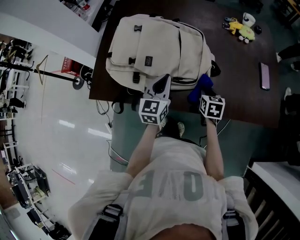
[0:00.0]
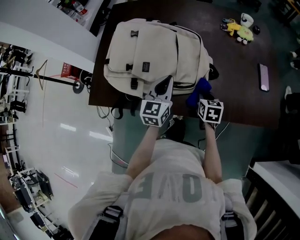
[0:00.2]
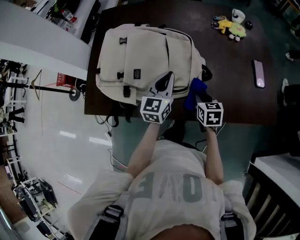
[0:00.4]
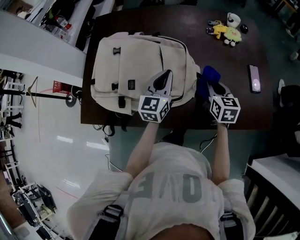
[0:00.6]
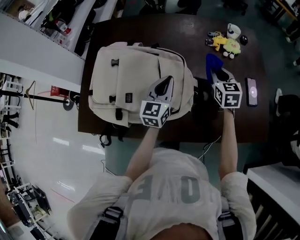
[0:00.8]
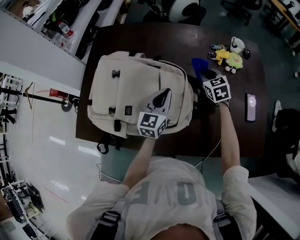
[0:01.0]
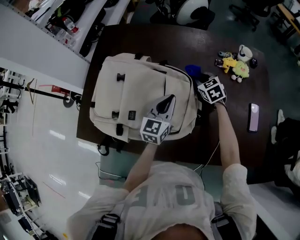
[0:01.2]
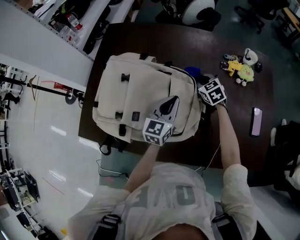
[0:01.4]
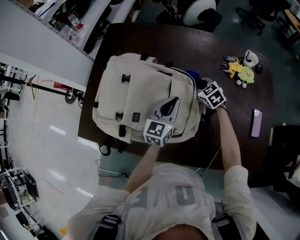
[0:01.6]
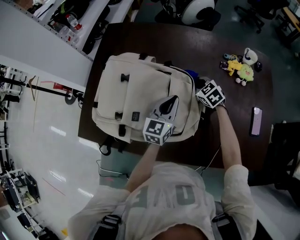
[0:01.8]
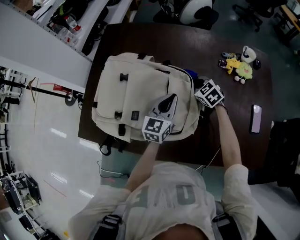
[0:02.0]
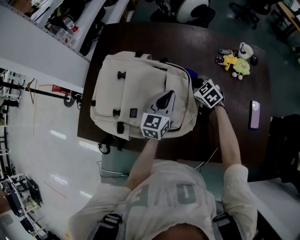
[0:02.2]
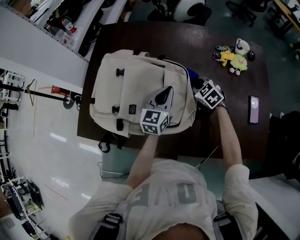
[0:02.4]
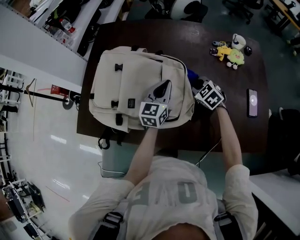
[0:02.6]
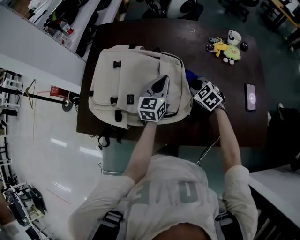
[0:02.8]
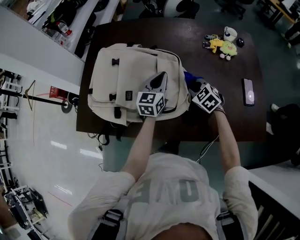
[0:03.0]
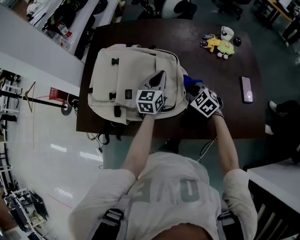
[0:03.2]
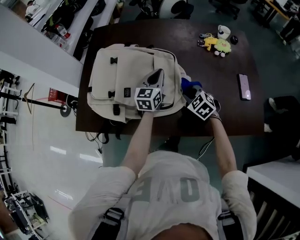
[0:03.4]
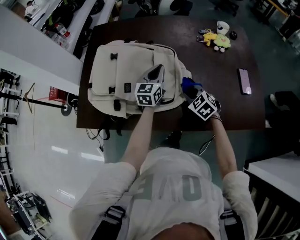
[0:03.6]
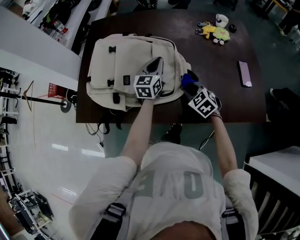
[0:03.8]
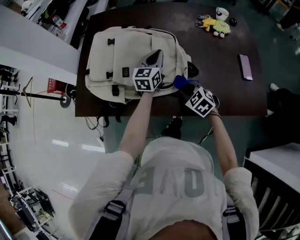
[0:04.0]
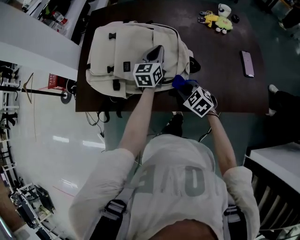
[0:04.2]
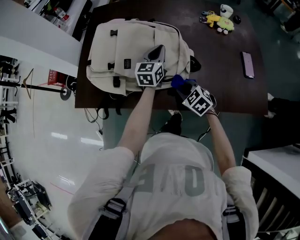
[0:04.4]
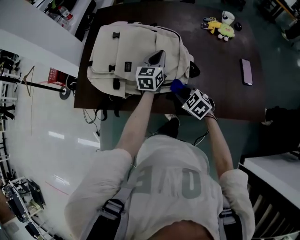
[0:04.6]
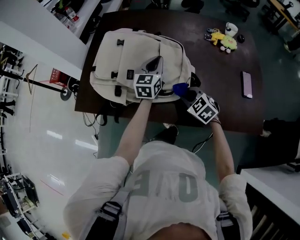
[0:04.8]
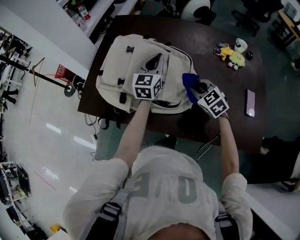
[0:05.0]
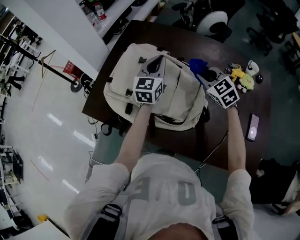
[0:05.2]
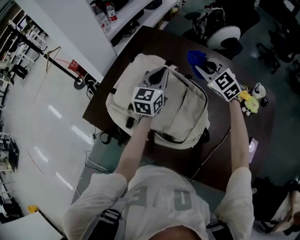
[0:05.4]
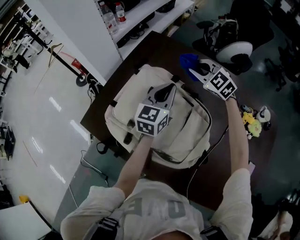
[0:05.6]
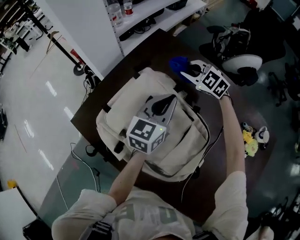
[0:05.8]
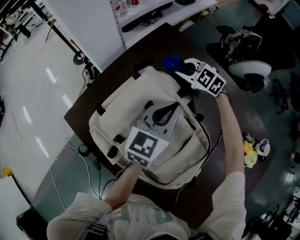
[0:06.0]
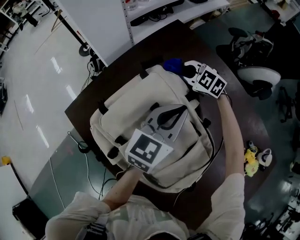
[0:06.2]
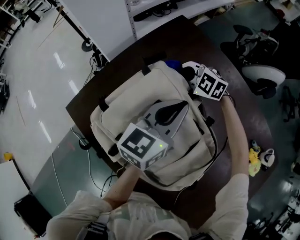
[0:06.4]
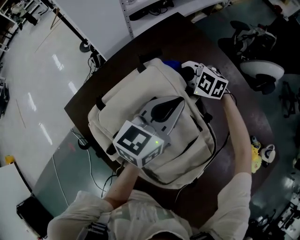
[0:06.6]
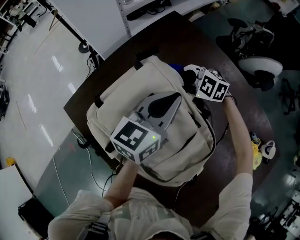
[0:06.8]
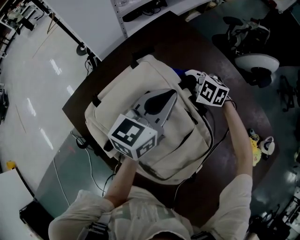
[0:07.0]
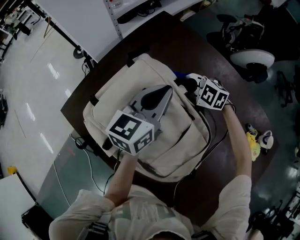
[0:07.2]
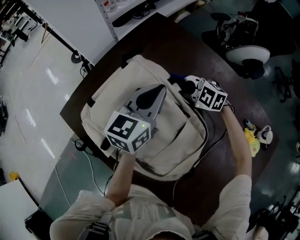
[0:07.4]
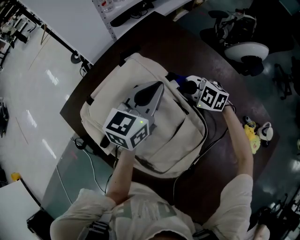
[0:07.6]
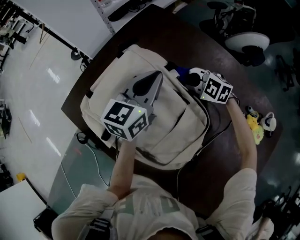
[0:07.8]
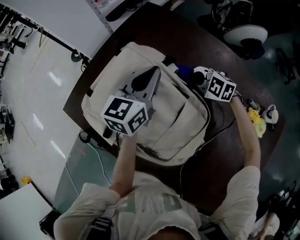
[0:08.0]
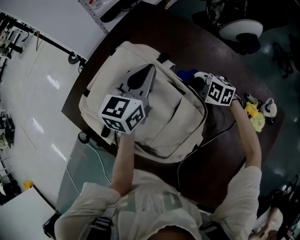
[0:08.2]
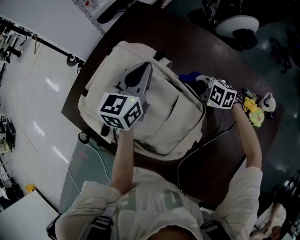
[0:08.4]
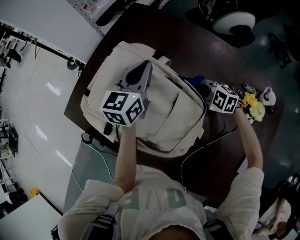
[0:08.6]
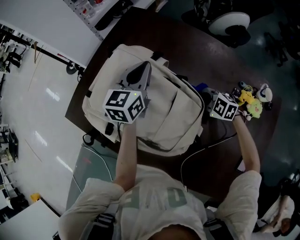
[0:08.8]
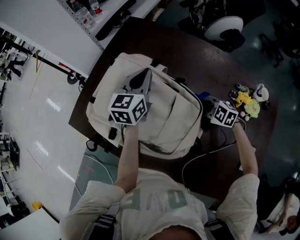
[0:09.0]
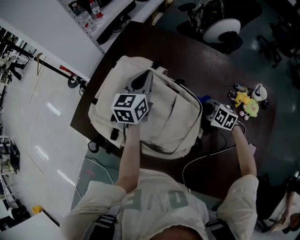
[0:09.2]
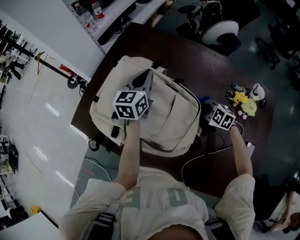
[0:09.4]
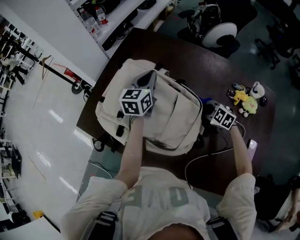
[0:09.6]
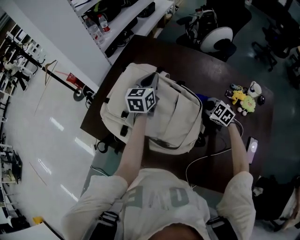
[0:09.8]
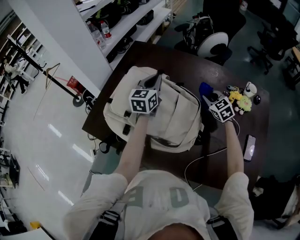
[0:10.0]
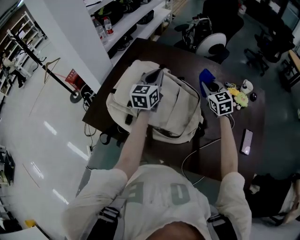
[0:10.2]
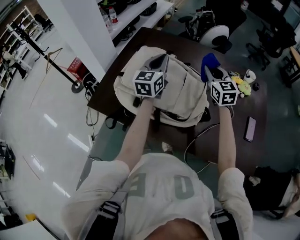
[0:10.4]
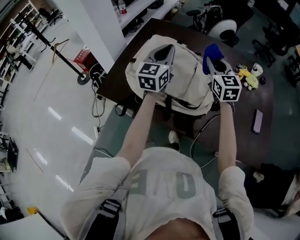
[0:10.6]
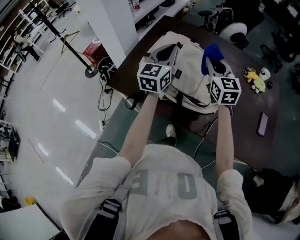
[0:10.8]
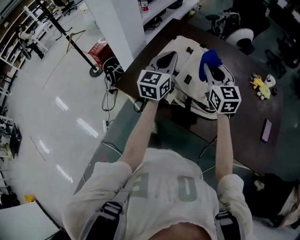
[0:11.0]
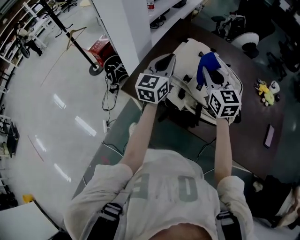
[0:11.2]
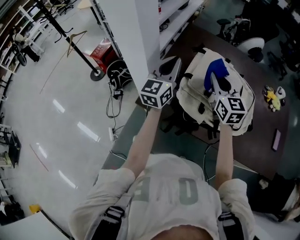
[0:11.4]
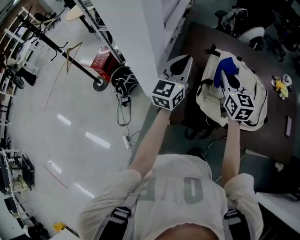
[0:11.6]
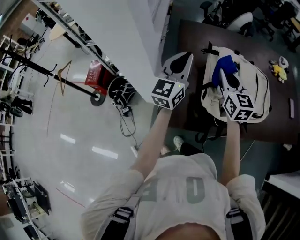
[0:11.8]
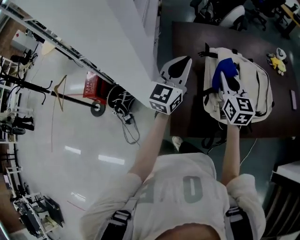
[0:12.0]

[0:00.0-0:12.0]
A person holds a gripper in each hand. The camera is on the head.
0:00.0 to 0:01.6: The left gripper shifts some 15 cm forward and to the right, while the right gripper moves forward, roughly 30 cm, and rotates around the line of its fingers by roughly 40 degrees, counterclockwise from behind.
0:01.6 to 0:03.0: The right gripper travels backward by about 15 cm.
0:03.0 to 0:04.4: The right gripper heads backward and to the left, covering roughly 15 cm.
0:04.4 to 0:06.0: The right gripper ends up about 50 cm from where it was, and swivels some 60 degrees. Meanwhile the left gripper moves approximately 20 cm, and swivels some 20 degrees.
0:06.0 to 0:07.6: The right gripper is displaced backward by some 15 cm.
0:07.6 to 0:09.0: The right gripper is displaced backward by some 20 cm, and swivels about 20 degrees.
0:09.0 to 0:10.4: The left gripper shifts by about 15 cm. The right gripper is displaced upward by approximately 25 cm, and tilts its fingers approximately 40 degrees upward.
0:10.4 to 0:12.0: The right gripper ends up some 35 cm from where it was, and swivels about 30 degrees. Meanwhile the left gripper ends up approximately 35 cm from where it was, and changes its angle by about 30 degrees.

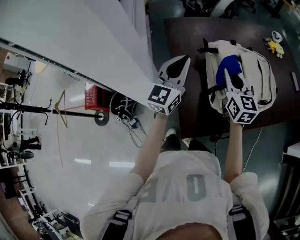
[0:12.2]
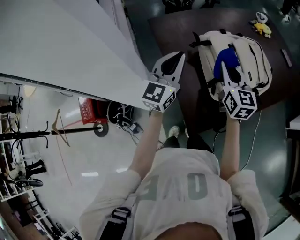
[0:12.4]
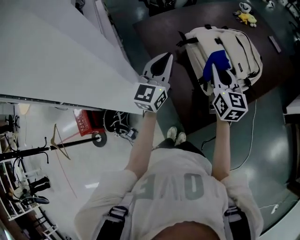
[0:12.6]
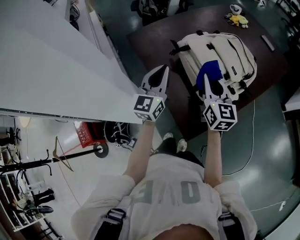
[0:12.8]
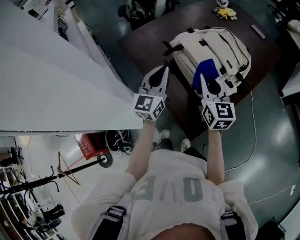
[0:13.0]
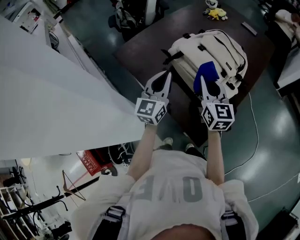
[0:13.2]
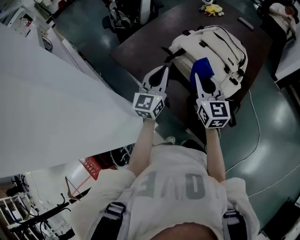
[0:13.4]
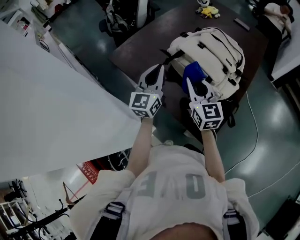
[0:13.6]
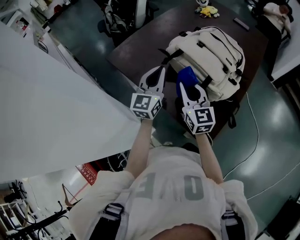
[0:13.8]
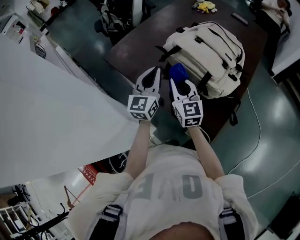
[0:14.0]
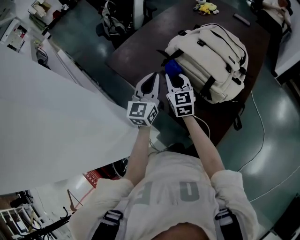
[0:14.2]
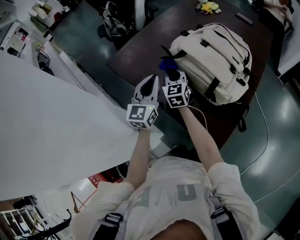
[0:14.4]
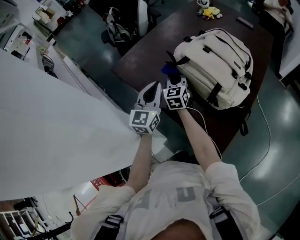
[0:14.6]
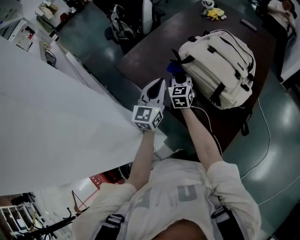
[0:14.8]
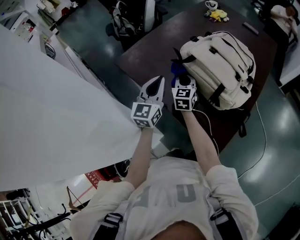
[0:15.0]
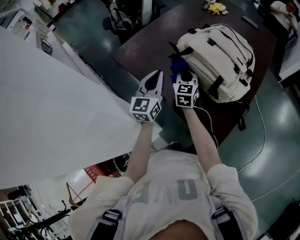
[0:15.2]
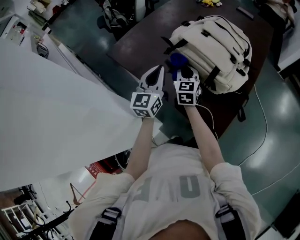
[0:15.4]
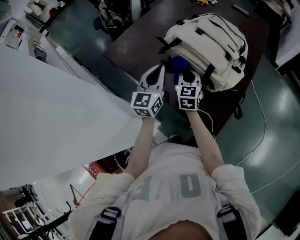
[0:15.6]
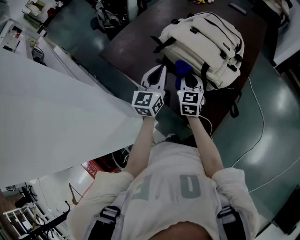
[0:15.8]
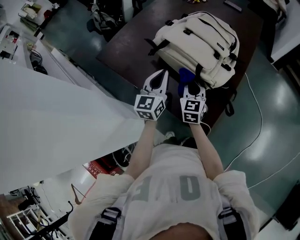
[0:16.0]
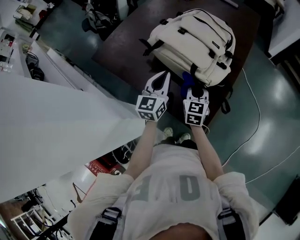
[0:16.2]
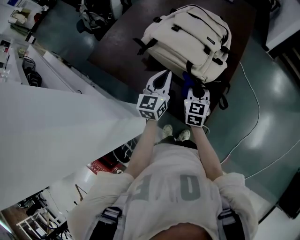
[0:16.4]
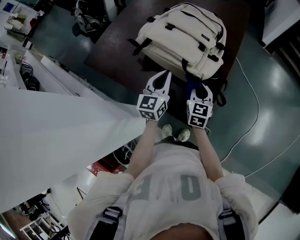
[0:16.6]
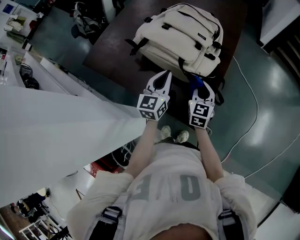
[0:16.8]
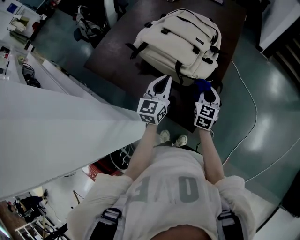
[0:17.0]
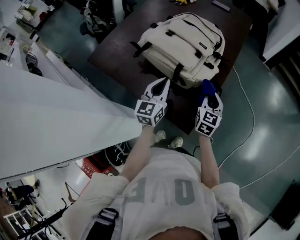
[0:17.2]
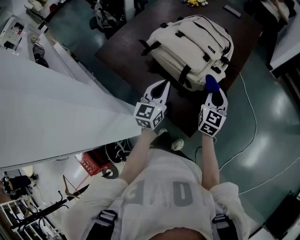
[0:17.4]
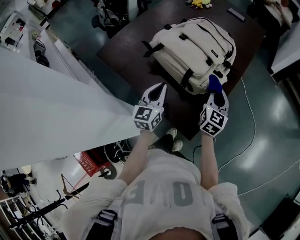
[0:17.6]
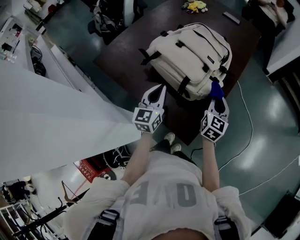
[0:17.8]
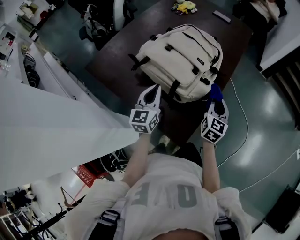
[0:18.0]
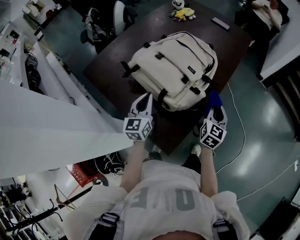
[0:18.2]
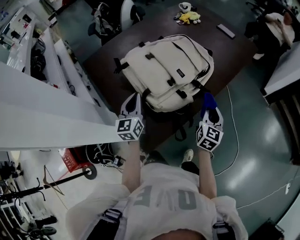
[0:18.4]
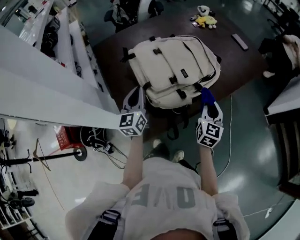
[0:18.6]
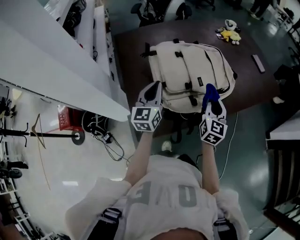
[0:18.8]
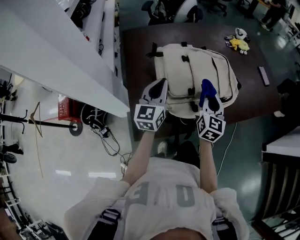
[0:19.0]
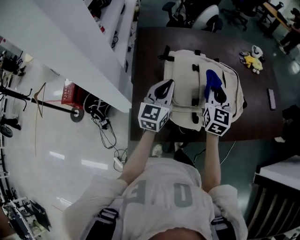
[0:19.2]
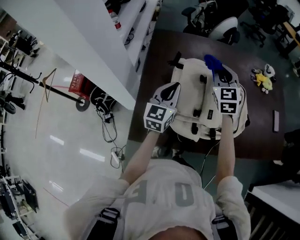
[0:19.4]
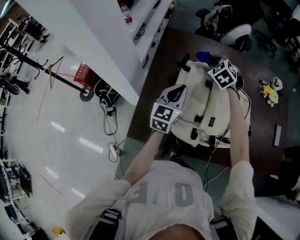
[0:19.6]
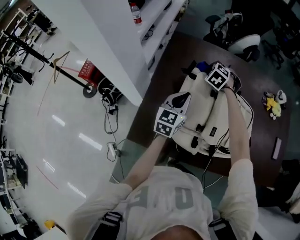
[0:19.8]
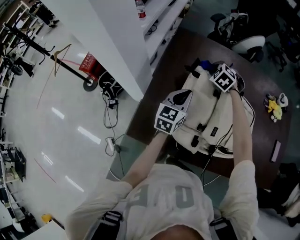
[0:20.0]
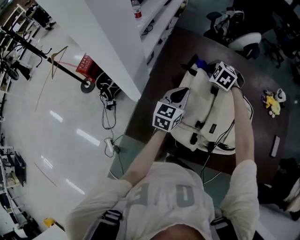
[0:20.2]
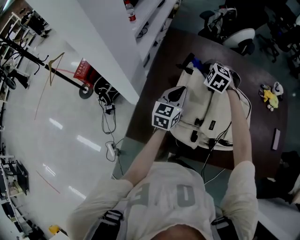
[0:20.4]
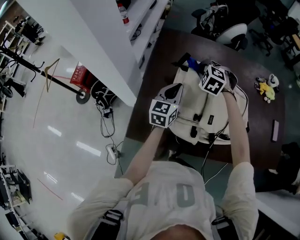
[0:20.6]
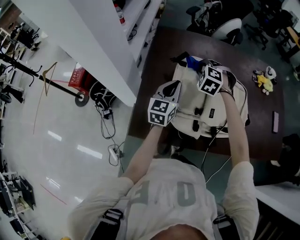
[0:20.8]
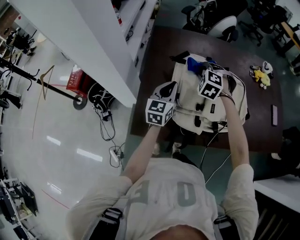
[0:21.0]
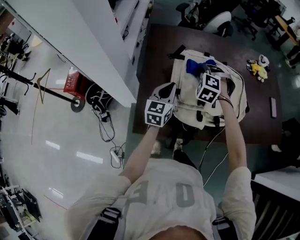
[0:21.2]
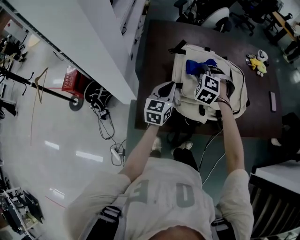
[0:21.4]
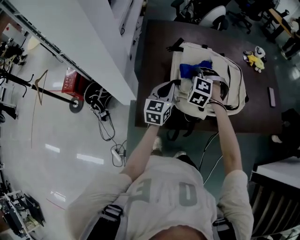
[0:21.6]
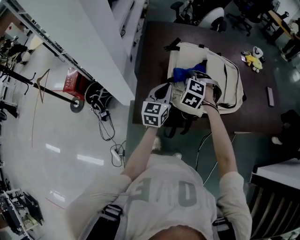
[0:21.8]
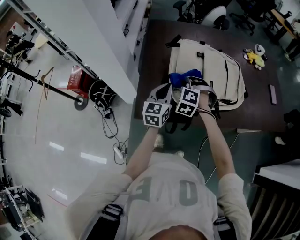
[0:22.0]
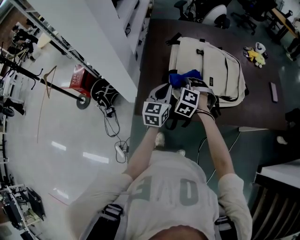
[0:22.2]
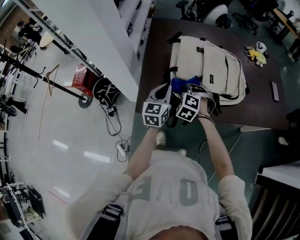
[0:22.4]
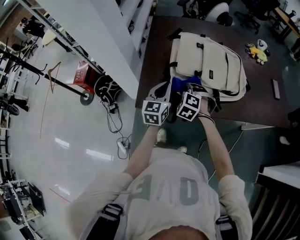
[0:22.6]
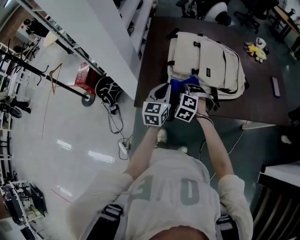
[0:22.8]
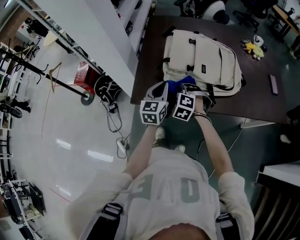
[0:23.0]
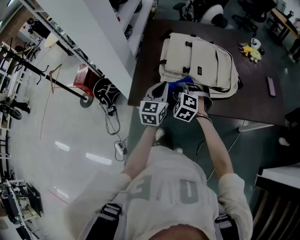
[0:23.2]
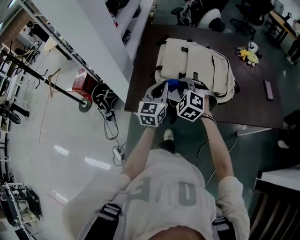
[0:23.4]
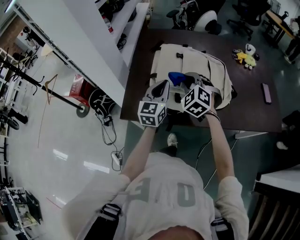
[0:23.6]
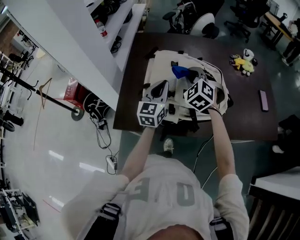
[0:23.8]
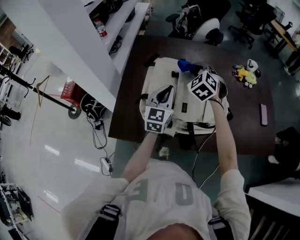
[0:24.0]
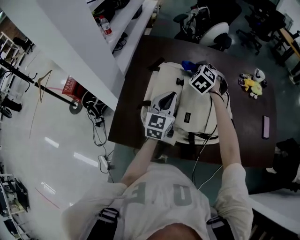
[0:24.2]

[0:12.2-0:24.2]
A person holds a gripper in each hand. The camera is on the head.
0:12.2 to 0:13.8: The right gripper shifts by some 10 cm, and rotates some 30 degrees, while the left gripper heads downward, covering about 10 cm, and changes its angle by about 30 degrees.
0:13.8 to 0:15.2: The left gripper shifts by about 5 cm, while the right gripper moves forward and downward, roughly 15 cm.
0:15.2 to 0:16.6: The right gripper goes roughly 25 cm to the right and backward; the left gripper travels to the right by about 20 cm.
0:16.6 to 0:18.2: The right gripper heads to the right and forward, covering roughly 20 cm.
0:18.2 to 0:19.8: The left gripper reaches approximately 10 cm upward, then returns, and swivels some 50 degrees. The right gripper moves some 15 cm upward and comes back, and tips its fingers downward by about 40 degrees.
0:19.8 to 0:21.2: The right gripper goes about 15 cm backward, while the left gripper shifts roughly 5 cm backward.
0:21.2 to 0:22.6: The left gripper travels backward by about 15 cm; the right gripper is displaced backward by about 20 cm.
0:22.6 to 0:24.2: The right gripper heads forward and to the right, covering roughly 35 cm. Meanwhile the left gripper shifts approximately 20 cm forward and to the right.
